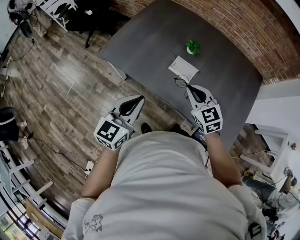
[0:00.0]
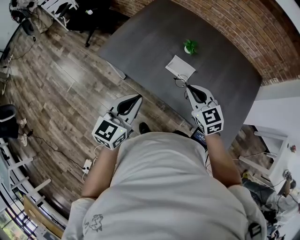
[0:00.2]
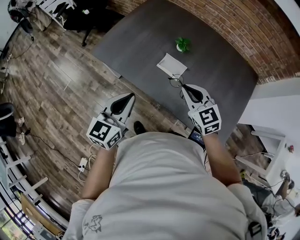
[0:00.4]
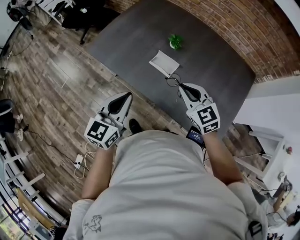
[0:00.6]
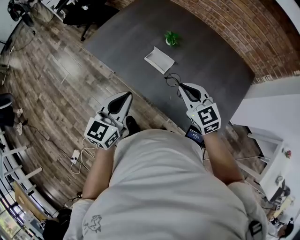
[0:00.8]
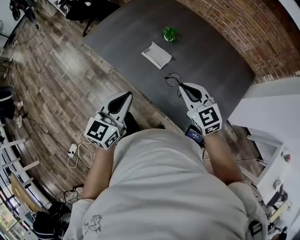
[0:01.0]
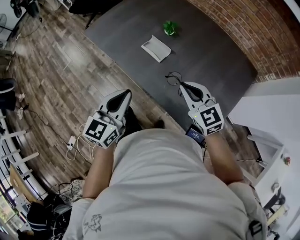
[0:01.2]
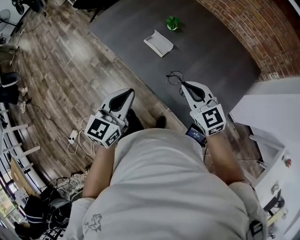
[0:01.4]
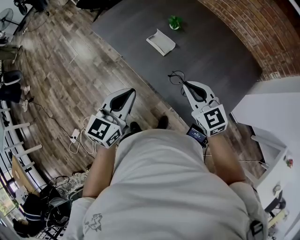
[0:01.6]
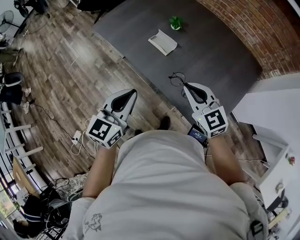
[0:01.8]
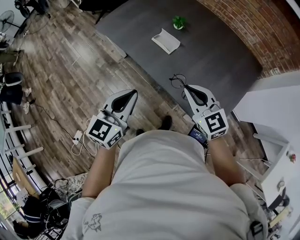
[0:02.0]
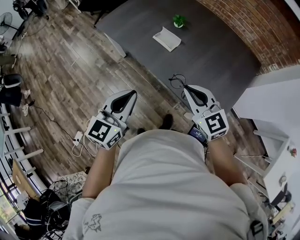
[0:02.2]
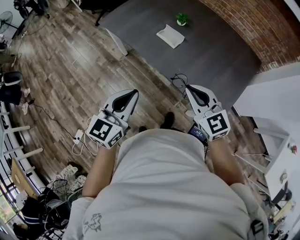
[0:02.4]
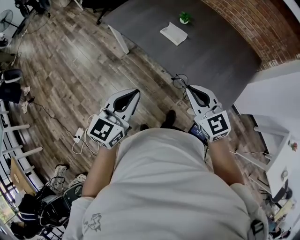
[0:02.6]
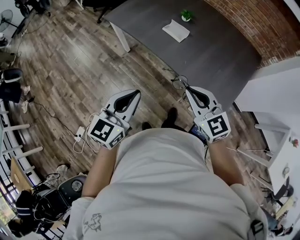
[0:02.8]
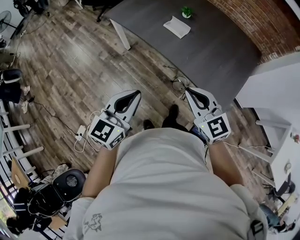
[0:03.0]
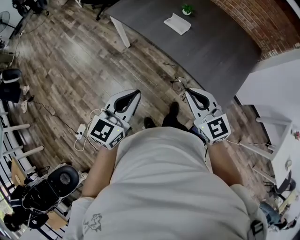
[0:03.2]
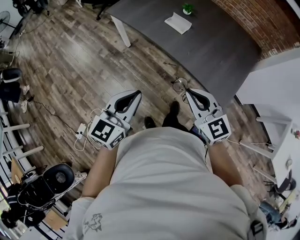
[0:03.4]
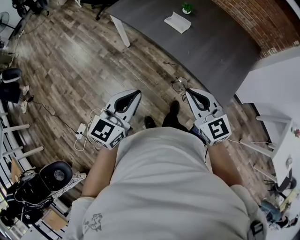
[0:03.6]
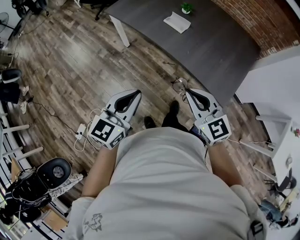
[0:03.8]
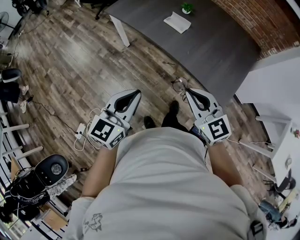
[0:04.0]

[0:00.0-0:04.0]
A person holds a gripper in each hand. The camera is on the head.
0:00.0 to 0:01.4: The two grippers go some 20 cm to the right and backward.
0:01.4 to 0:02.6: Both grippers move backward and to the left, roughly 20 cm.
0:02.6 to 0:04.0: The left gripper is displaced backward by roughly 10 cm; the right gripper goes roughly 10 cm backward and to the left.

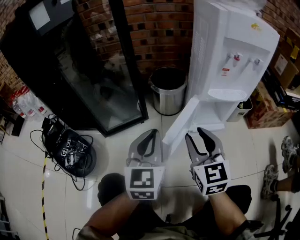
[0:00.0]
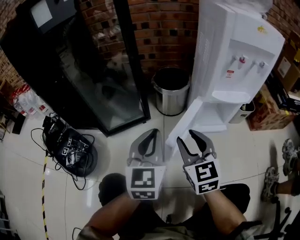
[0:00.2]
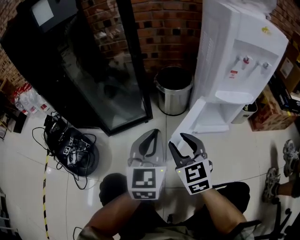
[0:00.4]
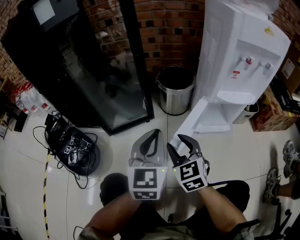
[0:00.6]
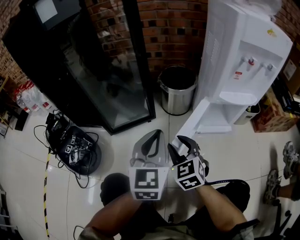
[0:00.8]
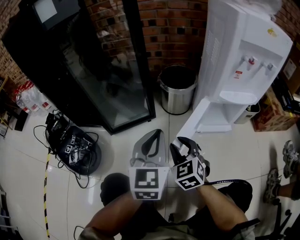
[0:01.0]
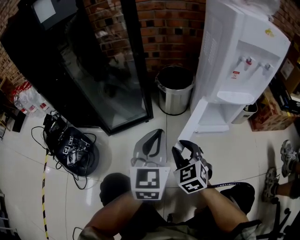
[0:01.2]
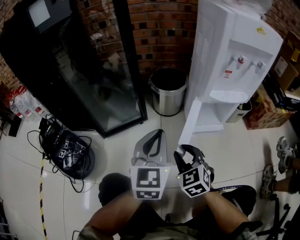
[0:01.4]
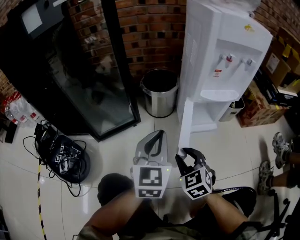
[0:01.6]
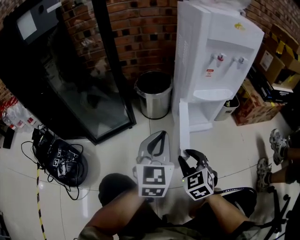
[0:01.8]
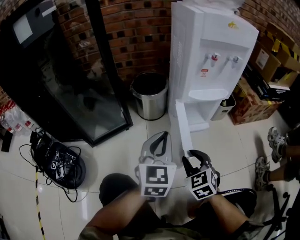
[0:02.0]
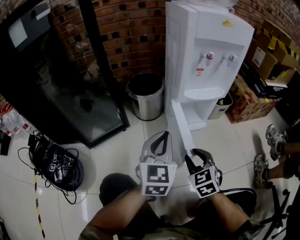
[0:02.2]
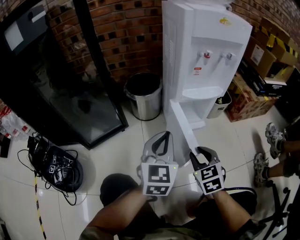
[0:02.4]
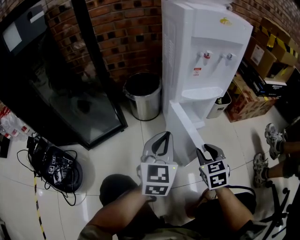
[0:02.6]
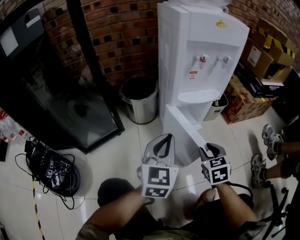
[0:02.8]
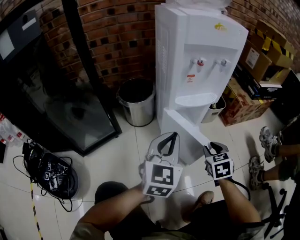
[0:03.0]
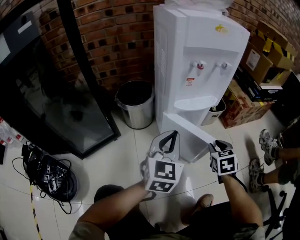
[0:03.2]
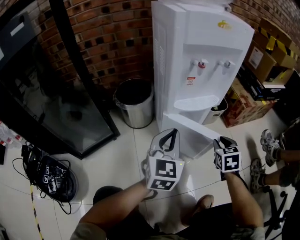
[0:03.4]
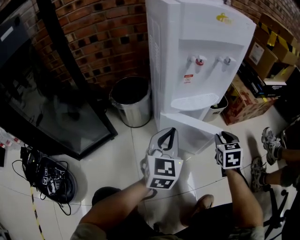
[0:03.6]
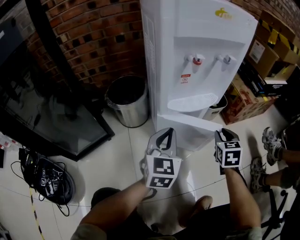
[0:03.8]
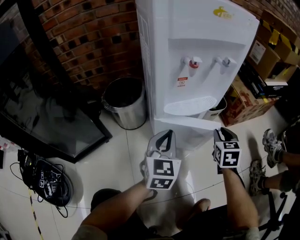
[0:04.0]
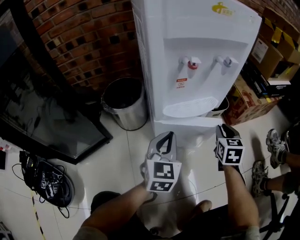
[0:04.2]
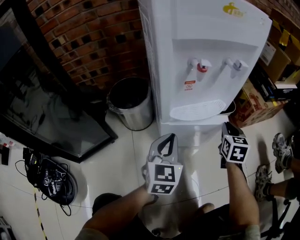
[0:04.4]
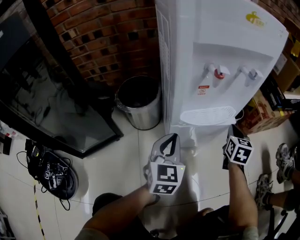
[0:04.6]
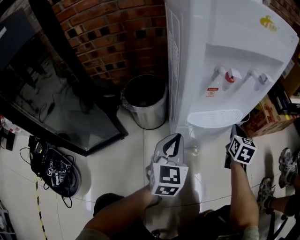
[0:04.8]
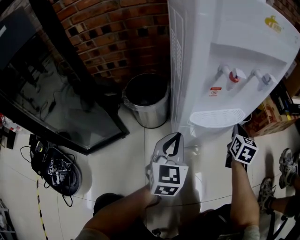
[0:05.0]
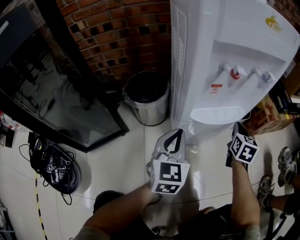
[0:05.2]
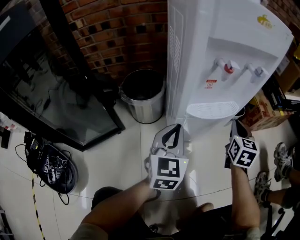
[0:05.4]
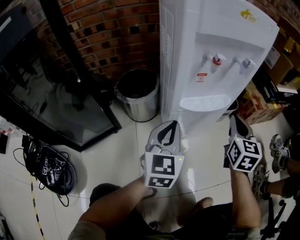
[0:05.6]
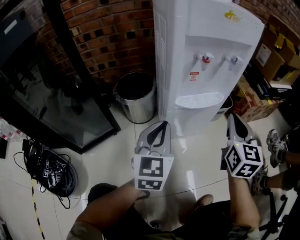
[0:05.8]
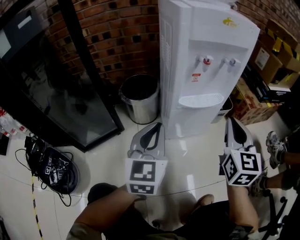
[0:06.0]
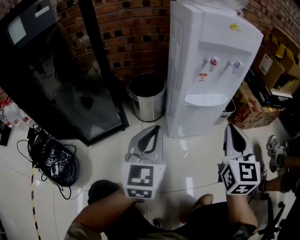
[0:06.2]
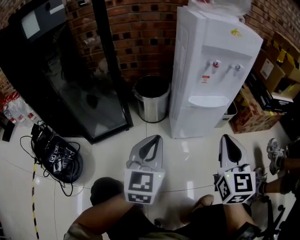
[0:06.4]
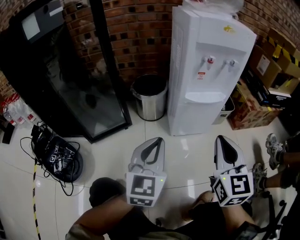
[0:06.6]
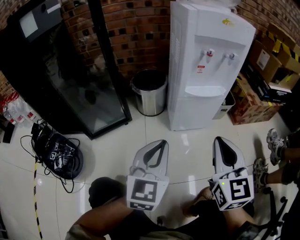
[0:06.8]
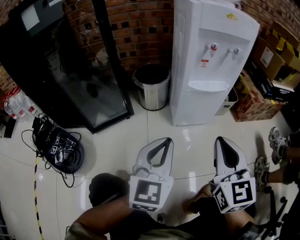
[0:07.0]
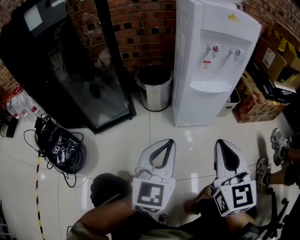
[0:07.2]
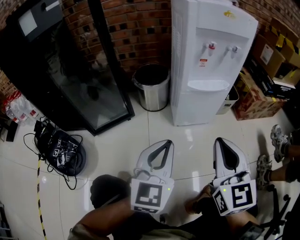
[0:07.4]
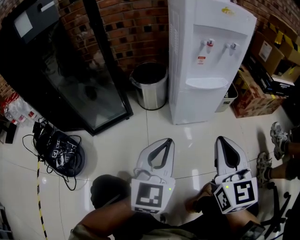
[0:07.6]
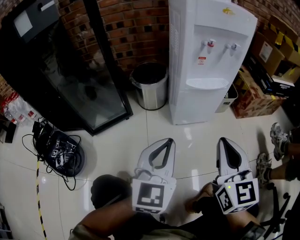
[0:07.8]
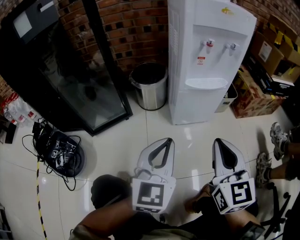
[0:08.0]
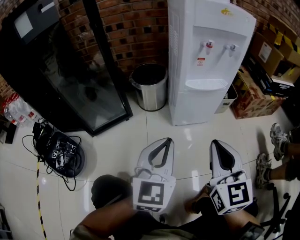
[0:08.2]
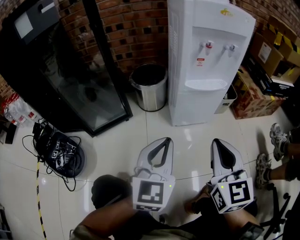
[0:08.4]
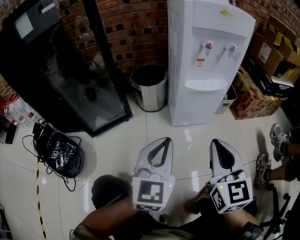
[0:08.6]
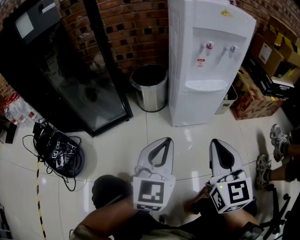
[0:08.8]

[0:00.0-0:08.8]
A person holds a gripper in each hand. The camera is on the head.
0:00.0 to 0:01.4: The right gripper travels downward by some 10 cm, and rotates about 30 degrees.
0:01.4 to 0:03.0: The right gripper shifts by some 25 cm, and swivels approximately 40 degrees. The left gripper shifts by about 15 cm, and swivels roughly 20 degrees.
0:03.0 to 0:04.4: The left gripper travels forward and downward by some 15 cm, while the right gripper moves forward, approximately 20 cm, and rotates about 20 degrees.
0:04.4 to 0:05.8: The left gripper moves upward and backward, some 10 cm. The right gripper travels upward and backward by about 20 cm, and turns by some 20 degrees.
0:05.8 to 0:07.4: The left gripper goes some 20 cm backward. Meanwhile the right gripper is displaced backward and to the left by about 25 cm, and turns by roughly 20 degrees.
0:07.4 to 0:08.8: The grippers stay close to where they were, moving slightly.

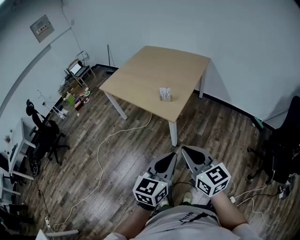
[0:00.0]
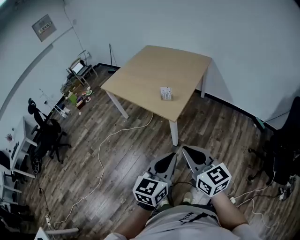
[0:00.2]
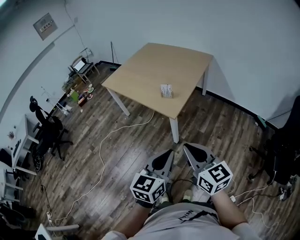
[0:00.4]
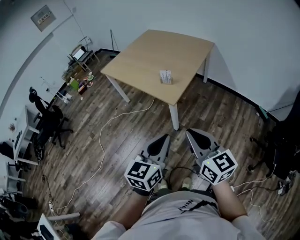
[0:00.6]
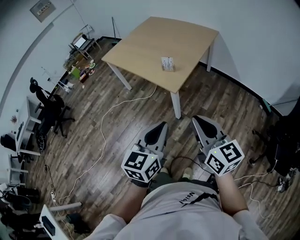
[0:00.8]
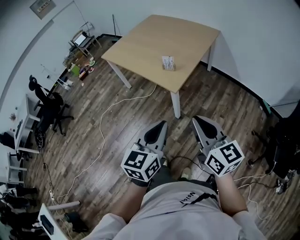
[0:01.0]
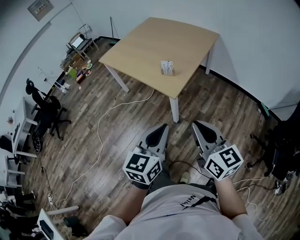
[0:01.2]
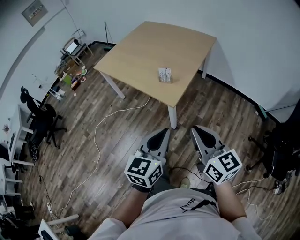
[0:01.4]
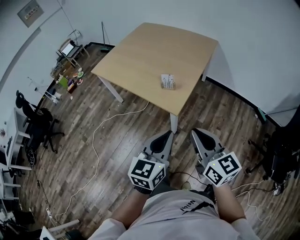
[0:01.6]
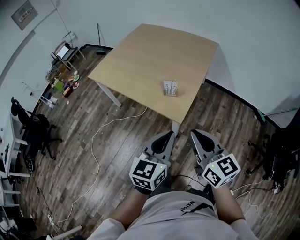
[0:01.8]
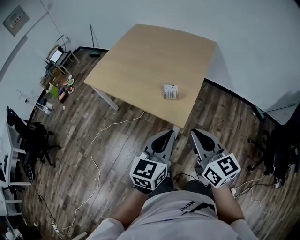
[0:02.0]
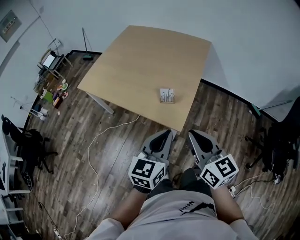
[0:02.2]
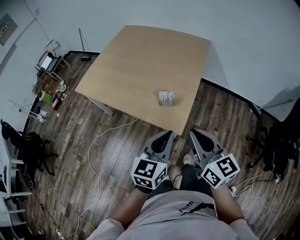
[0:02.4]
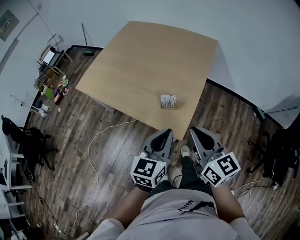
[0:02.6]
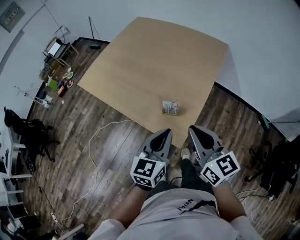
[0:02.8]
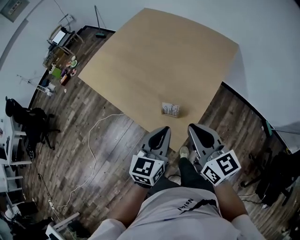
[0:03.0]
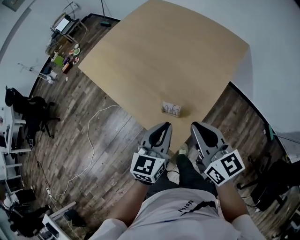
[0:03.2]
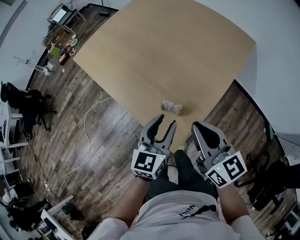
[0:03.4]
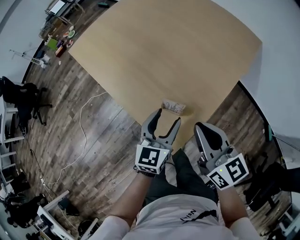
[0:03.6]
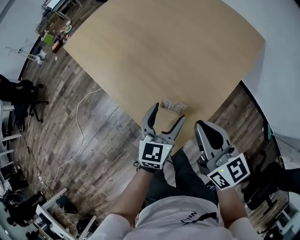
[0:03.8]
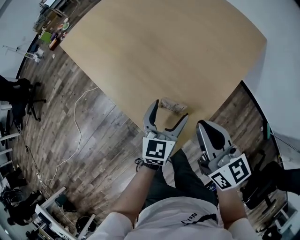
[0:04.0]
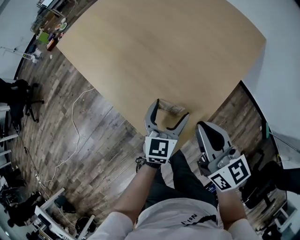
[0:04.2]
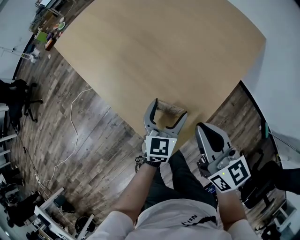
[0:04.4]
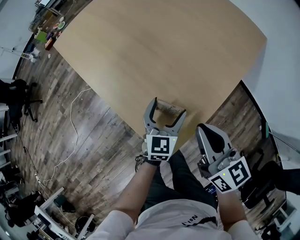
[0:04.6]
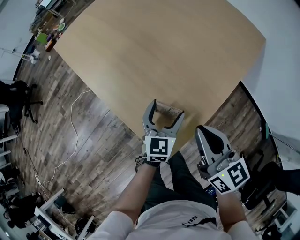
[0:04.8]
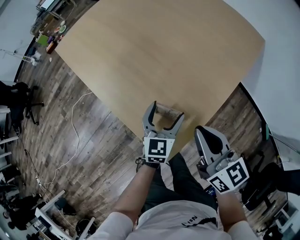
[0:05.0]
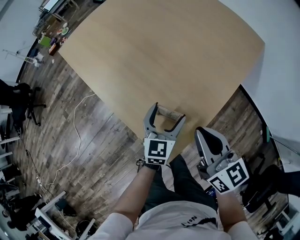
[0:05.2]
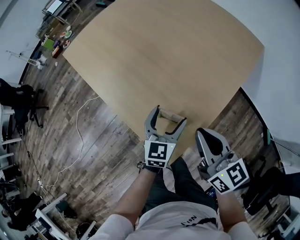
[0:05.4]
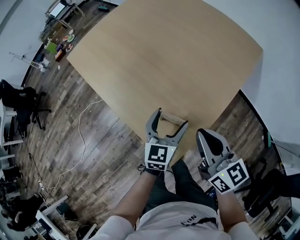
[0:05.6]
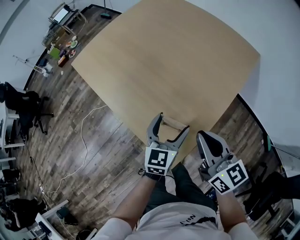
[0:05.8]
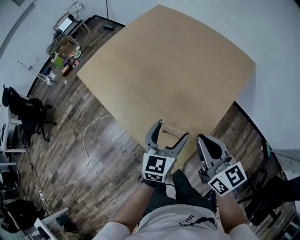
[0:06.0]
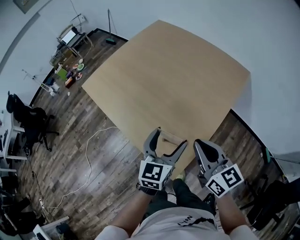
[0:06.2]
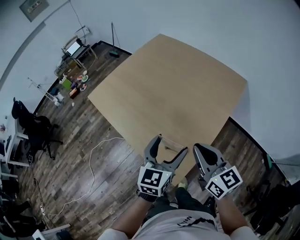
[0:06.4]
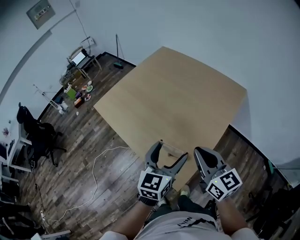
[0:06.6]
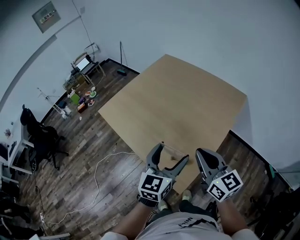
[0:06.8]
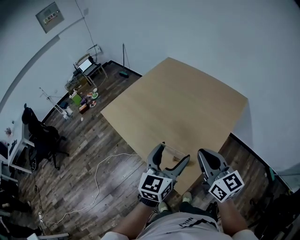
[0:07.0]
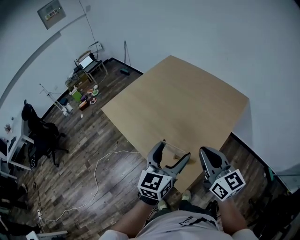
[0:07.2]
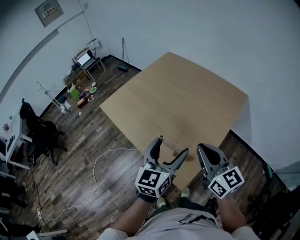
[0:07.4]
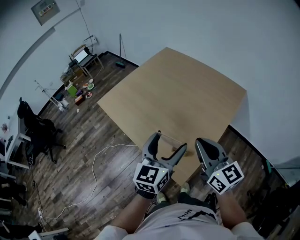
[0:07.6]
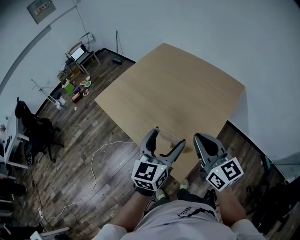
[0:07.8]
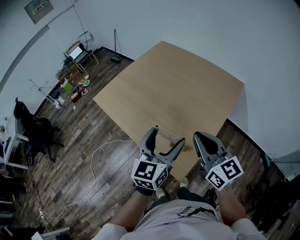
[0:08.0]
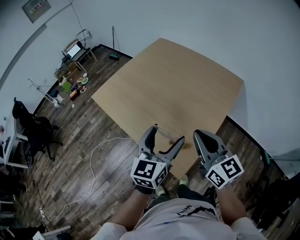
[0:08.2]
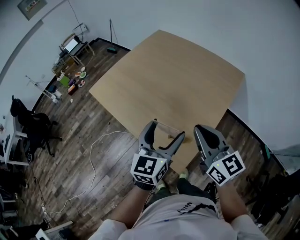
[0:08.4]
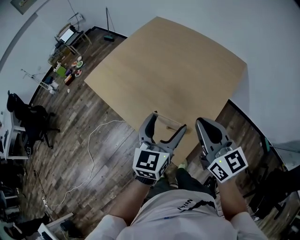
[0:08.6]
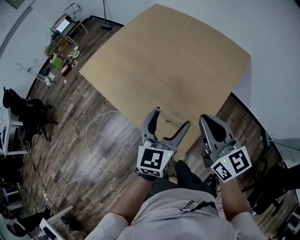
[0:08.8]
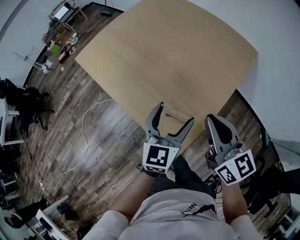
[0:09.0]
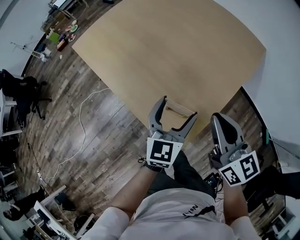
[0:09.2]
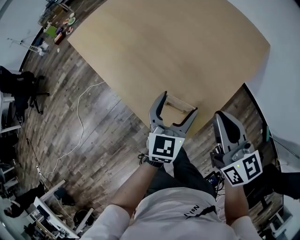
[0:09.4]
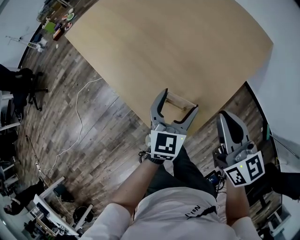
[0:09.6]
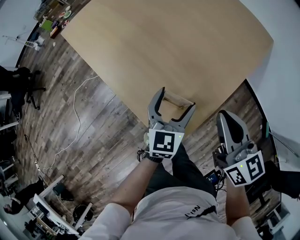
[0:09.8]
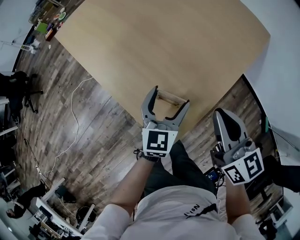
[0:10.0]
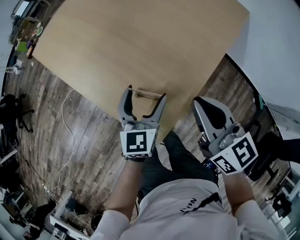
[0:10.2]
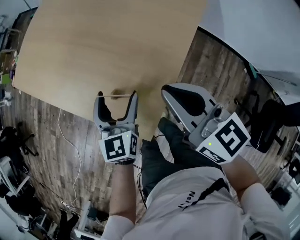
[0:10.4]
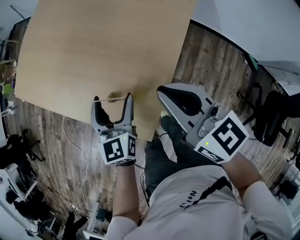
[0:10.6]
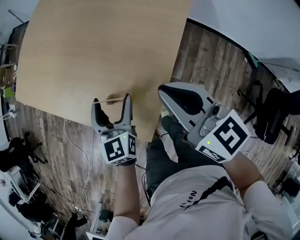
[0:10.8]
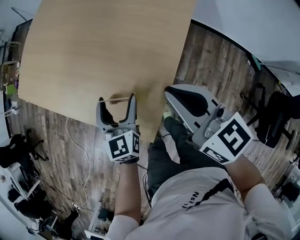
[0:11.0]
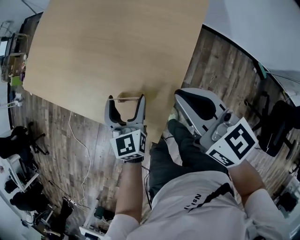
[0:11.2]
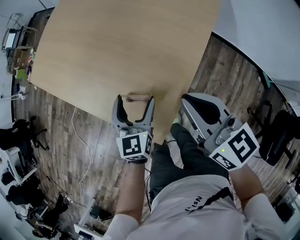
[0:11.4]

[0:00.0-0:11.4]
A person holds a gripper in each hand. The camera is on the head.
0:00.0 to 0:01.4: The right gripper shifts roughly 10 cm forward and to the right. Meanwhile the left gripper goes about 10 cm forward.
0:01.4 to 0:02.8: Both grippers travel together forward, approximately 35 cm.
0:02.8 to 0:04.2: Both grippers travel together downward and forward, approximately 25 cm. The left gripper opens up.
0:04.2 to 0:05.6: The grippers stay close to where they were, moving slightly.
0:05.6 to 0:07.2: The right gripper travels upward by about 15 cm, while the left gripper goes some 25 cm upward.
0:07.2 to 0:08.6: There are only small adjustments of the grippers.
0:08.6 to 0:10.0: The two grippers go about 20 cm downward.
